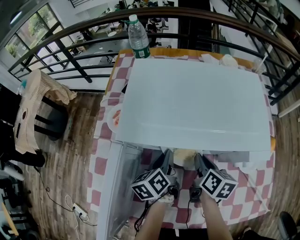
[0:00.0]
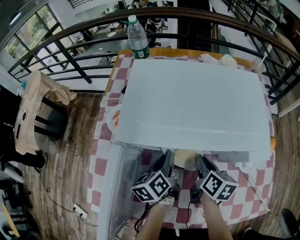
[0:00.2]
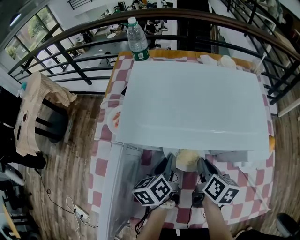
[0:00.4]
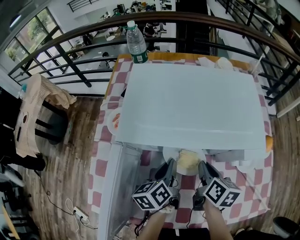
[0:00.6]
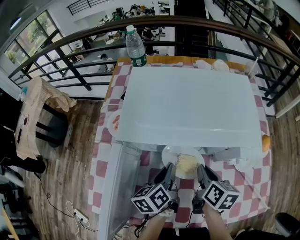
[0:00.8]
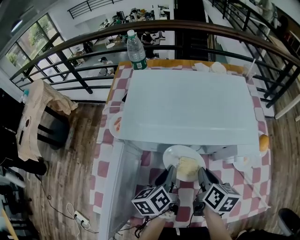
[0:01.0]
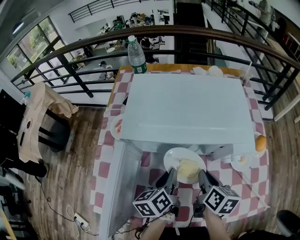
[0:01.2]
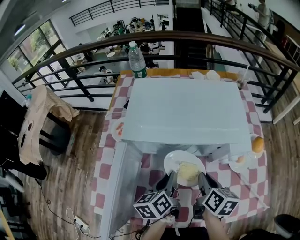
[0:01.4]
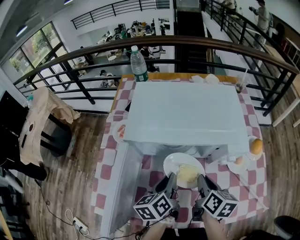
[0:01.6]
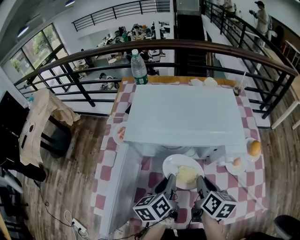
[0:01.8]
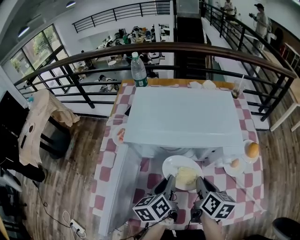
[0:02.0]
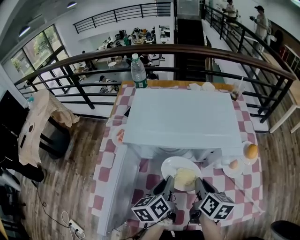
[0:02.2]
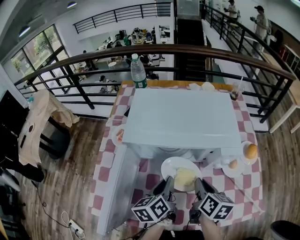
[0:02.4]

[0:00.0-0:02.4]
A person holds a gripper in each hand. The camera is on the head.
0.0 to 1.2 s: The two grippers go about 10 cm backward.
1.2 to 2.4 s: The grippers stay close to where they were, moving slightly.

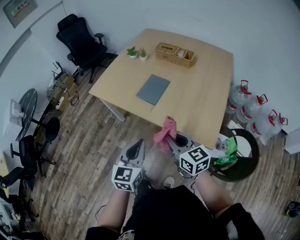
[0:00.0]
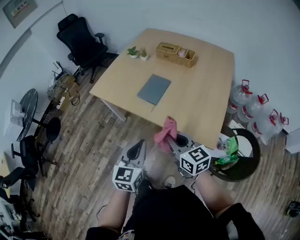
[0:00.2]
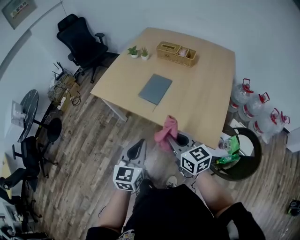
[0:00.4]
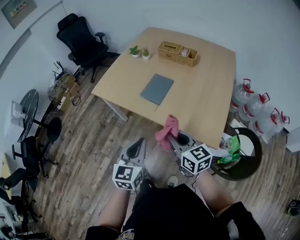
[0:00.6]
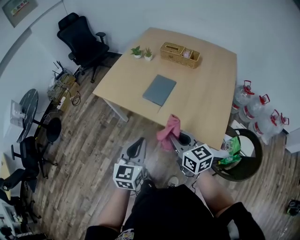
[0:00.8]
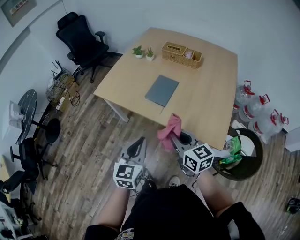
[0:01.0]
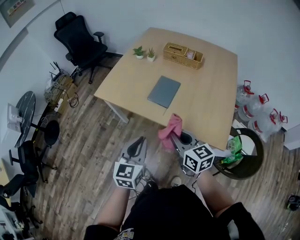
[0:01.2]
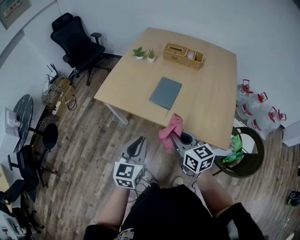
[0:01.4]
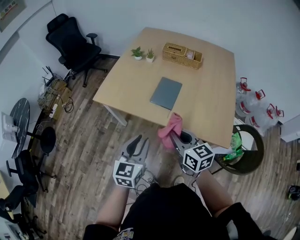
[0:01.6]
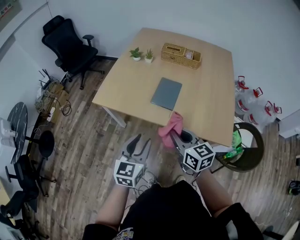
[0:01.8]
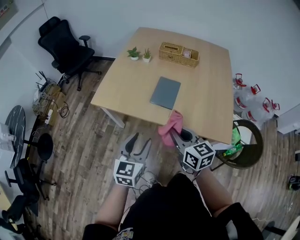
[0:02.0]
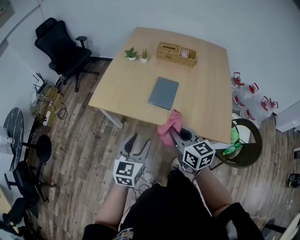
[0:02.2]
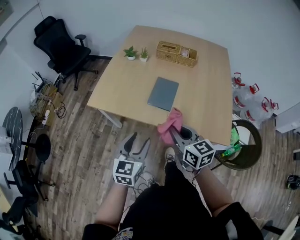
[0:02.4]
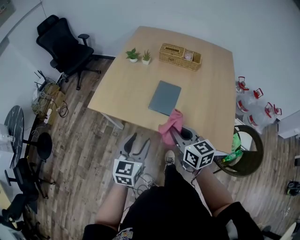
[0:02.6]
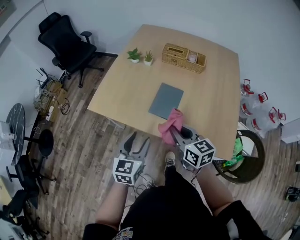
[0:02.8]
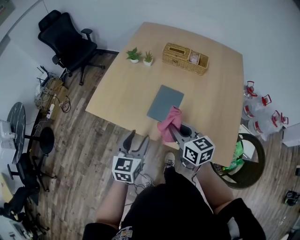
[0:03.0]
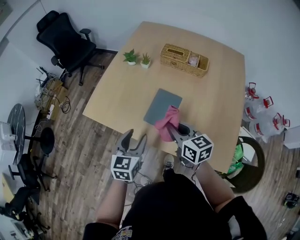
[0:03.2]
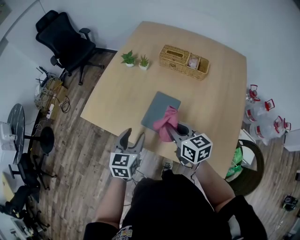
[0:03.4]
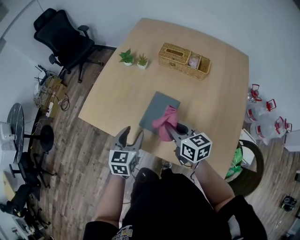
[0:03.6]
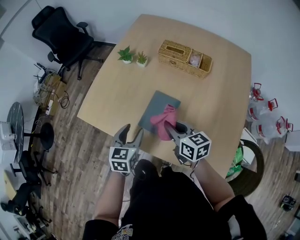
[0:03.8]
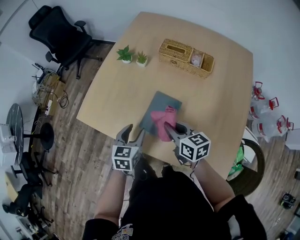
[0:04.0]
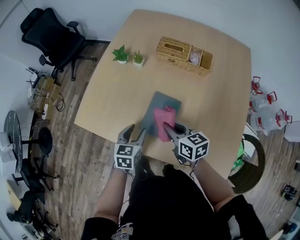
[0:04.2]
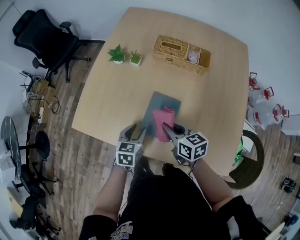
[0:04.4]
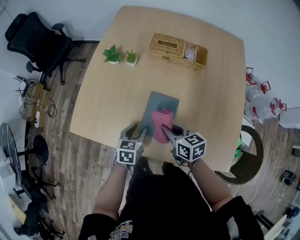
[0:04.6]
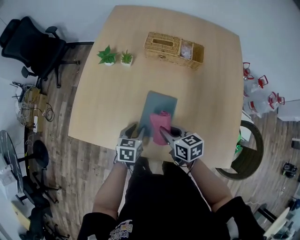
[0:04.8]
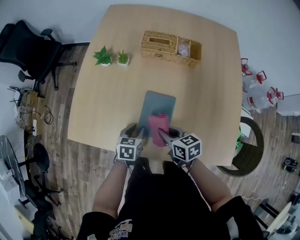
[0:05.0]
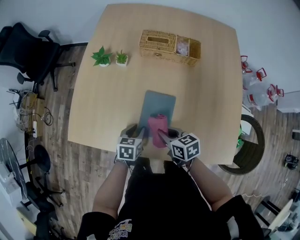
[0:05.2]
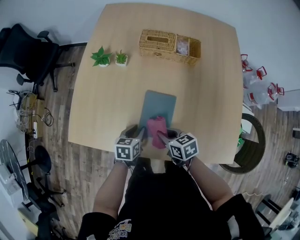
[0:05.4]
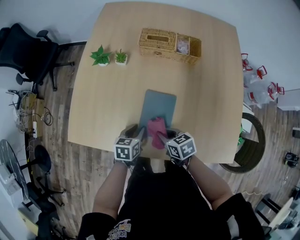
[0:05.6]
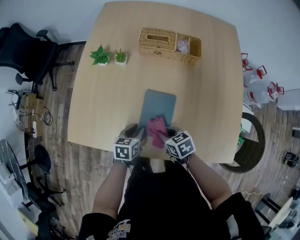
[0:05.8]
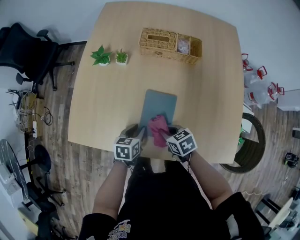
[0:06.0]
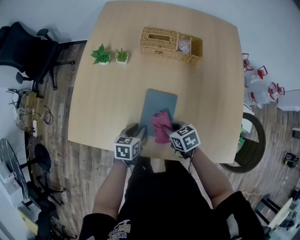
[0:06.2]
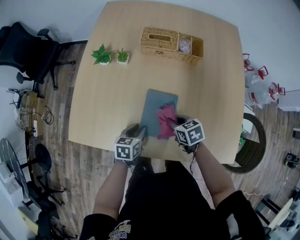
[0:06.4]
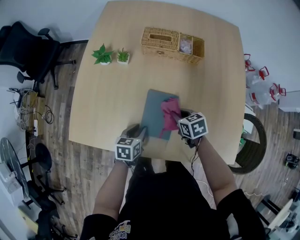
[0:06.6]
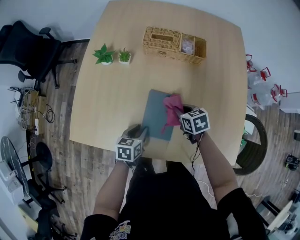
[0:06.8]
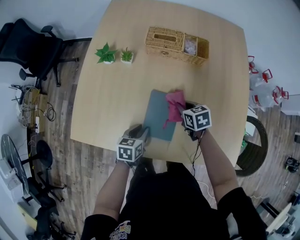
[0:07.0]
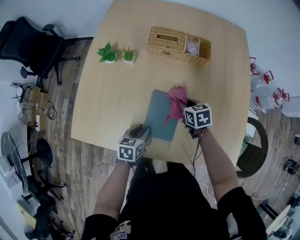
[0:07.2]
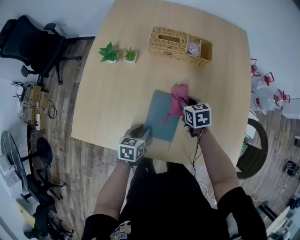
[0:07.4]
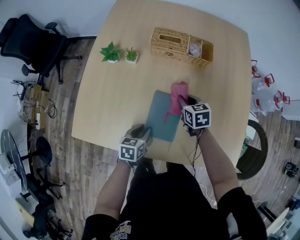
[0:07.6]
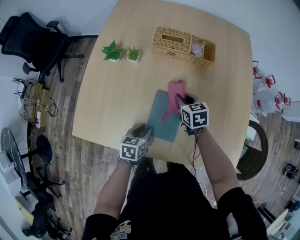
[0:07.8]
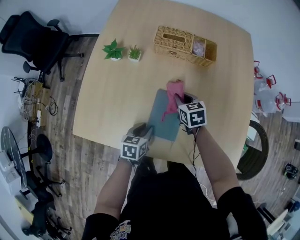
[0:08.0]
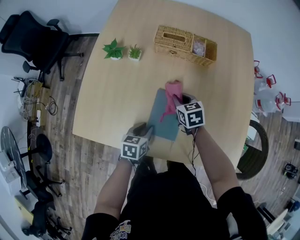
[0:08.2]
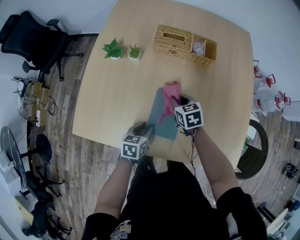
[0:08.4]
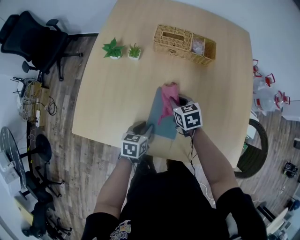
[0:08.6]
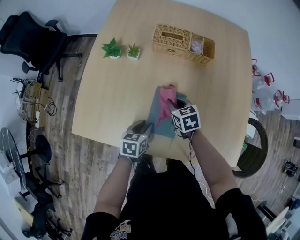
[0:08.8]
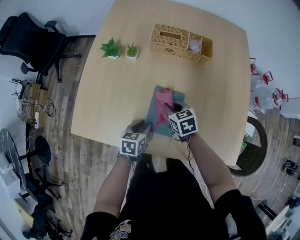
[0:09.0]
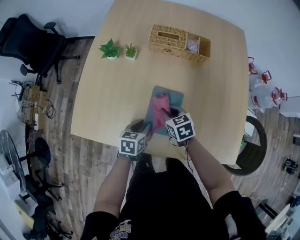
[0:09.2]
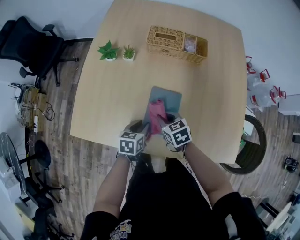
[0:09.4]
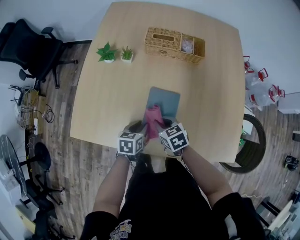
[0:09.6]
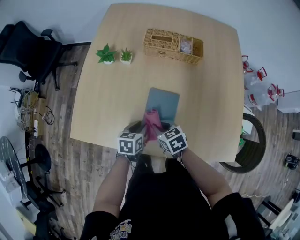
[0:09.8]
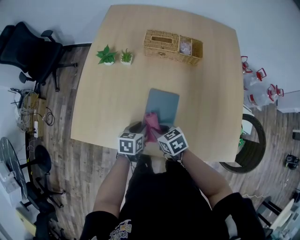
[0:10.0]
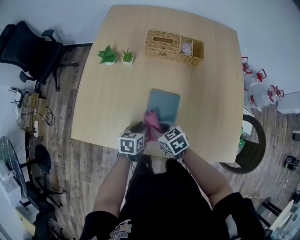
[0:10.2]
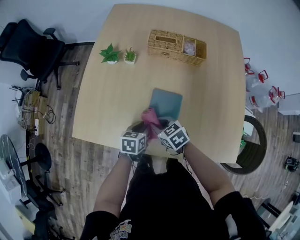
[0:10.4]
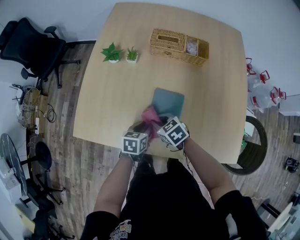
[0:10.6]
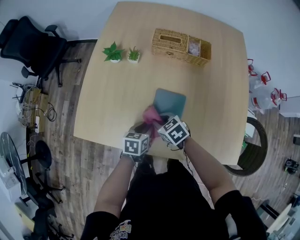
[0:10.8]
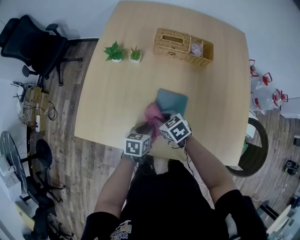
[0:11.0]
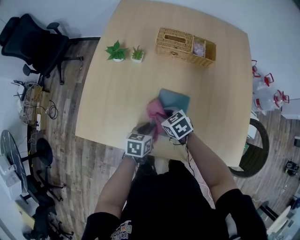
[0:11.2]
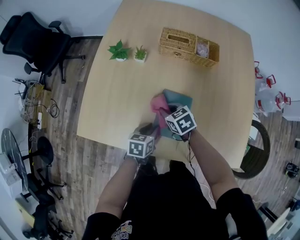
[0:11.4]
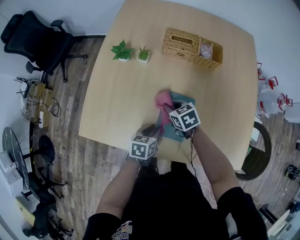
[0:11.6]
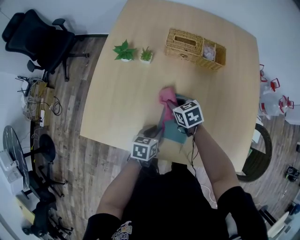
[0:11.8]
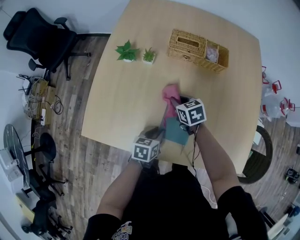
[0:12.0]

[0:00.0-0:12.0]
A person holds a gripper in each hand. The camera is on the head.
0.0 to 1.6 s: The grippers both shift to the left and forward by approximately 15 cm.
1.6 to 3.0 s: Both grippers travel together forward, about 15 cm. The left gripper opens.
3.0 to 4.4 s: The grippers both shift forward and downward by approximately 20 cm. The left gripper rotates approximately 20 degrees.
4.4 to 6.0 s: The left gripper is displaced downward by about 5 cm. Meanwhile the right gripper shifts about 10 cm downward, and turns by roughly 20 degrees.
6.0 to 7.6 s: The right gripper goes about 20 cm forward and to the right, and swivels about 20 degrees.
7.6 to 9.0 s: The right gripper is displaced to the left and backward by roughly 10 cm.
9.0 to 10.4 s: The right gripper heads backward and to the left, covering some 10 cm.
10.4 to 12.0 s: The right gripper moves forward, approximately 15 cm.

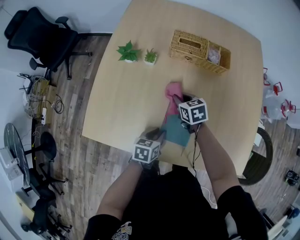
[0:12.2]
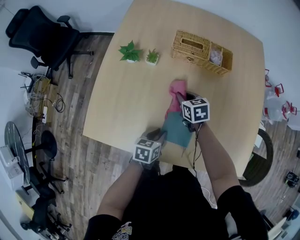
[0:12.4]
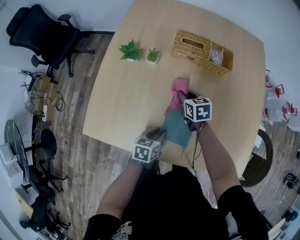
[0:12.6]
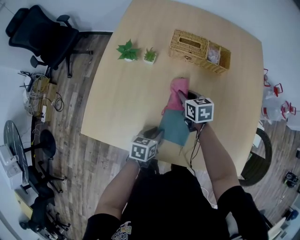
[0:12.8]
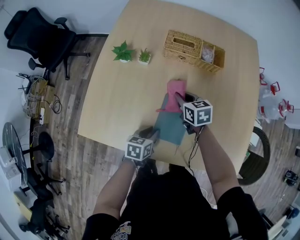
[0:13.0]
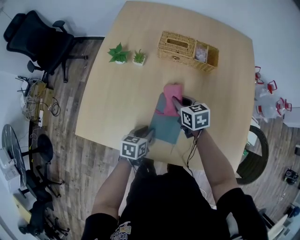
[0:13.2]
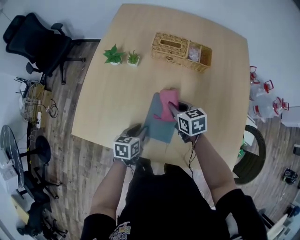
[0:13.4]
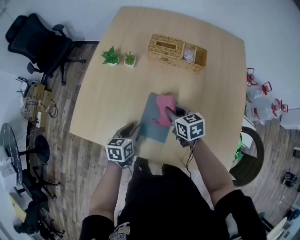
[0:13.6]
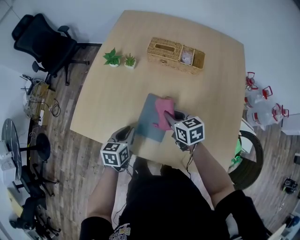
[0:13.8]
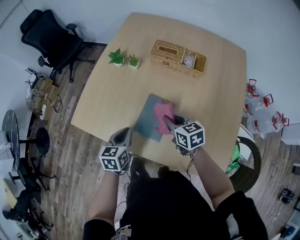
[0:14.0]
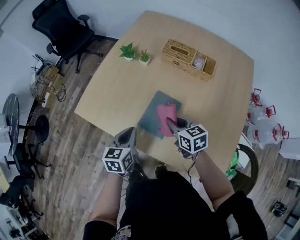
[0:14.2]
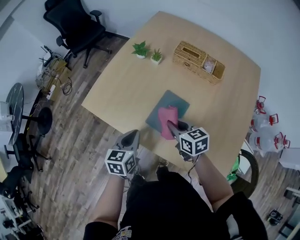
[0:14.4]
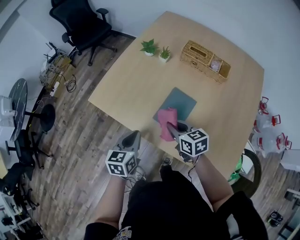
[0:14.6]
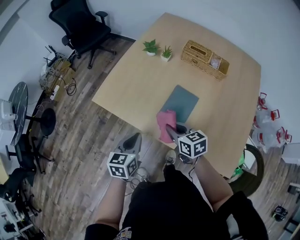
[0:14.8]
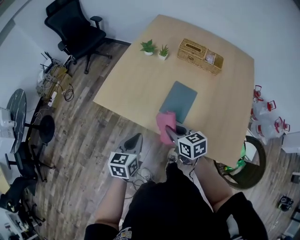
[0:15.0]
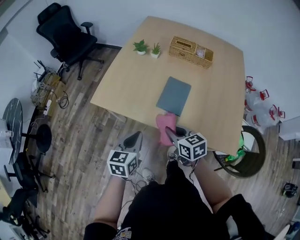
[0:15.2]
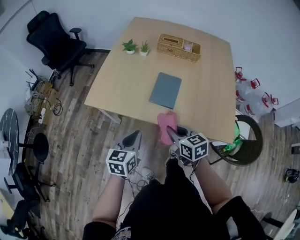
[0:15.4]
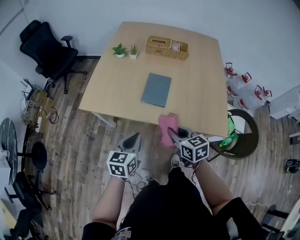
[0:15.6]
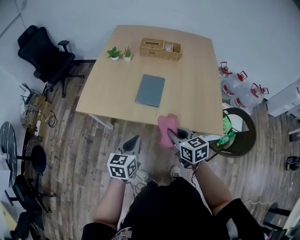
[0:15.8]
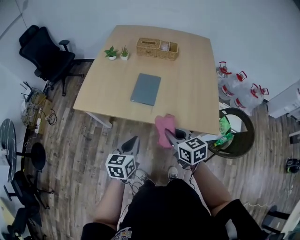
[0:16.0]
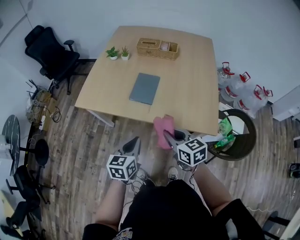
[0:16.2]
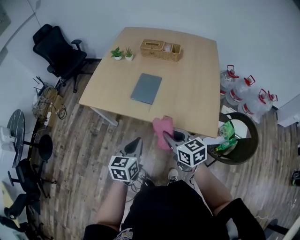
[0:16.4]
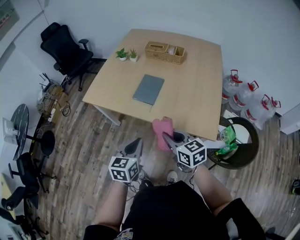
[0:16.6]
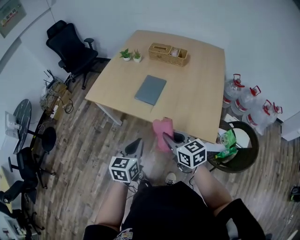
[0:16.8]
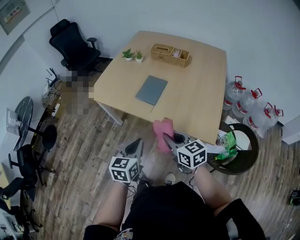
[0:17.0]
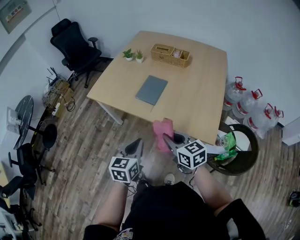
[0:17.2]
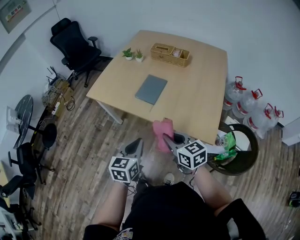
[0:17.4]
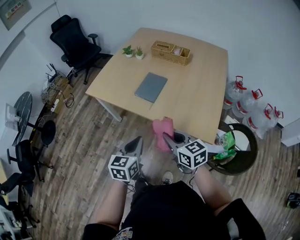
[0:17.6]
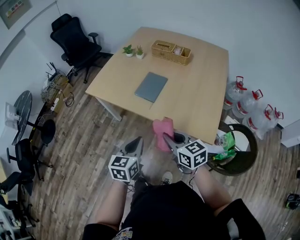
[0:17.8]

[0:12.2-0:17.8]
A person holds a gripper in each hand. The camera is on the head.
12.2 to 13.6 s: The right gripper travels to the right, backward and upward by some 10 cm.
13.6 to 15.0 s: The right gripper heads backward and to the left, covering roughly 25 cm, while the left gripper shifts roughly 25 cm backward, to the left and upward, and closes up.
15.0 to 16.4 s: The two grippers go about 25 cm backward and to the right.
16.4 to 17.8 s: There are only small adjustments of the grippers.

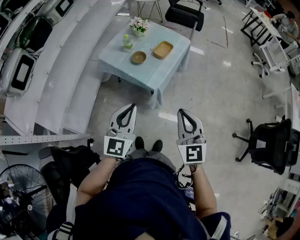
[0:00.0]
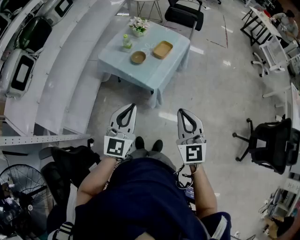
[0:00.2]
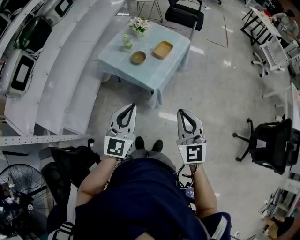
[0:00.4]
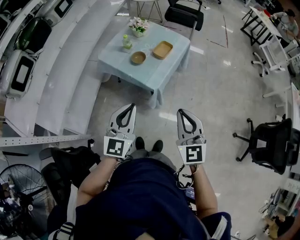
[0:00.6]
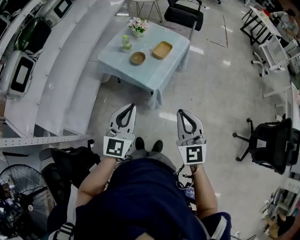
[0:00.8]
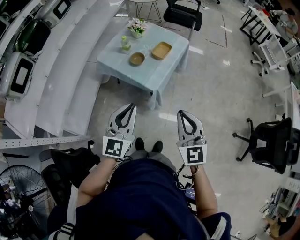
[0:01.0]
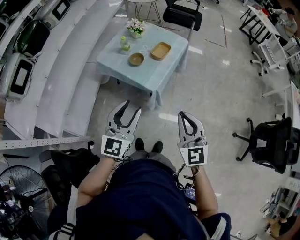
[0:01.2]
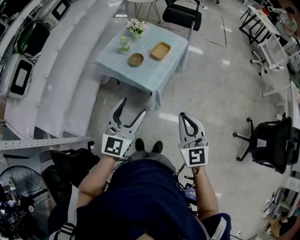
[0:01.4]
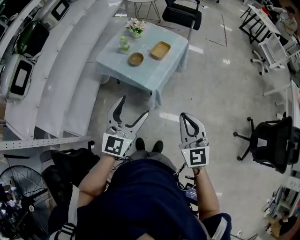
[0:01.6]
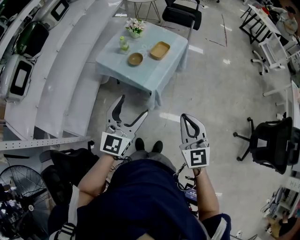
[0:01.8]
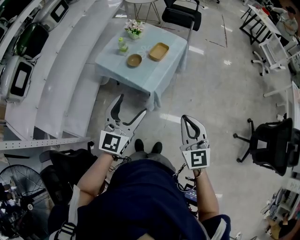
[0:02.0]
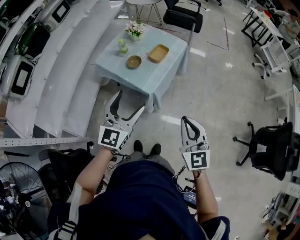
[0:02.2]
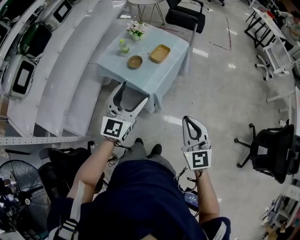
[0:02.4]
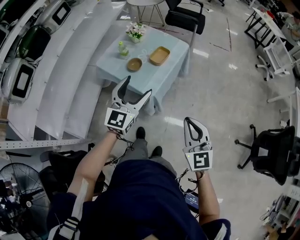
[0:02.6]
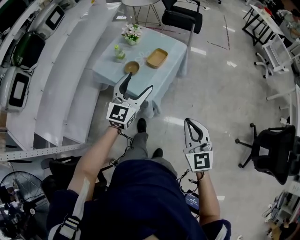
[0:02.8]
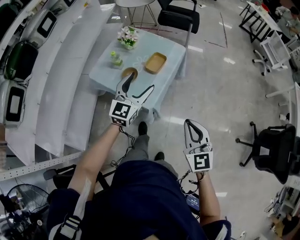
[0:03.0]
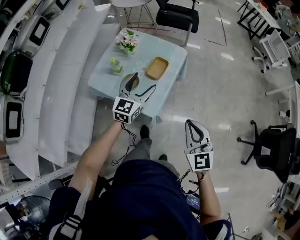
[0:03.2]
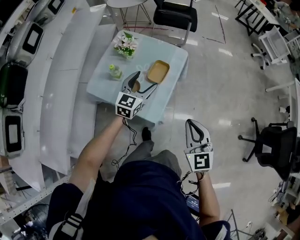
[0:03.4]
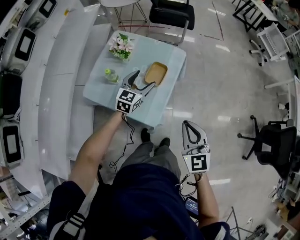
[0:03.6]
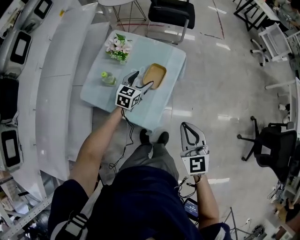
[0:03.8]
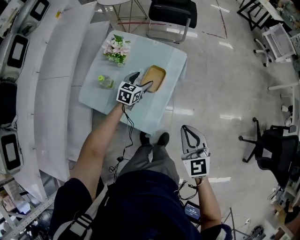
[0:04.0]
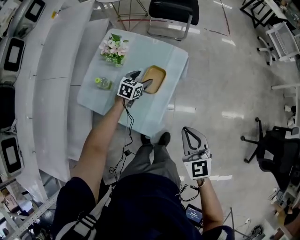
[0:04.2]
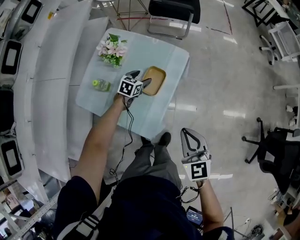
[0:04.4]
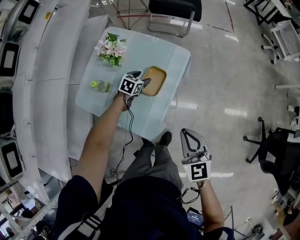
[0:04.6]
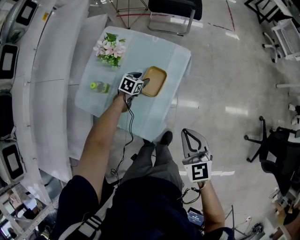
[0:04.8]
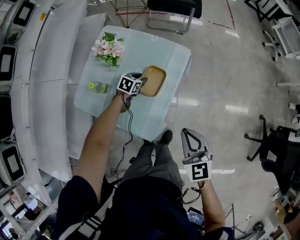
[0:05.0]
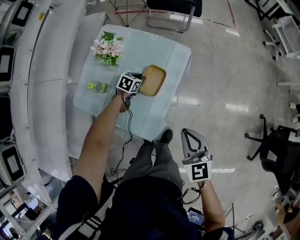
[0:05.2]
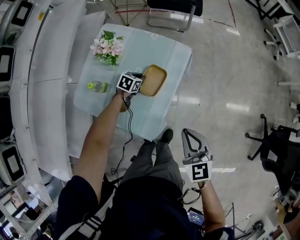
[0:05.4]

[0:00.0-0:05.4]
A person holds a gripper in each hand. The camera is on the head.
0.0 to 1.4 s: The left gripper opens.
1.4 to 2.8 s: The right gripper moves forward and to the right, about 10 cm. The left gripper goes some 20 cm forward.
2.8 to 4.0 s: The right gripper travels forward by about 25 cm, while the left gripper travels forward and downward by some 40 cm, and angles its fingers downward, by some 30 degrees.
4.0 to 5.4 s: The right gripper is displaced downward and forward by about 10 cm. The left gripper travels downward by approximately 15 cm, swivels approximately 20 degrees, and closes up.
